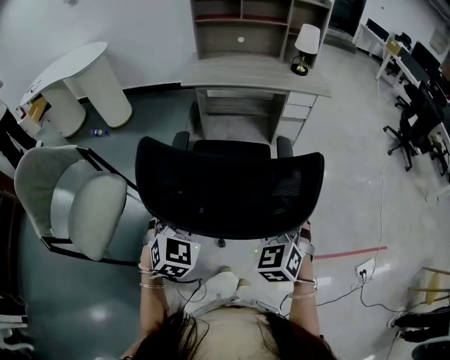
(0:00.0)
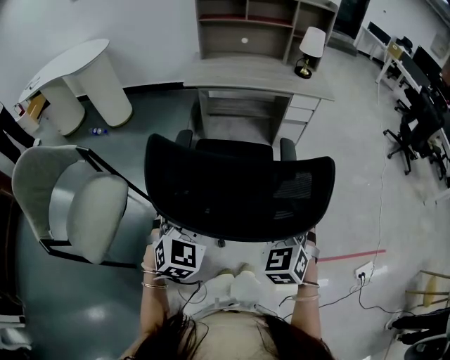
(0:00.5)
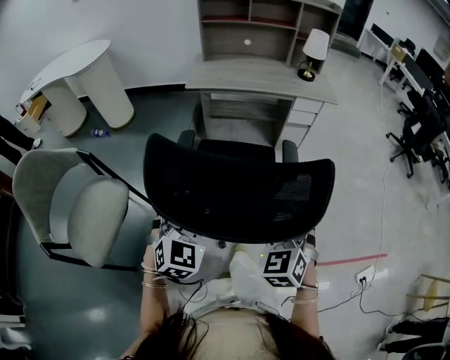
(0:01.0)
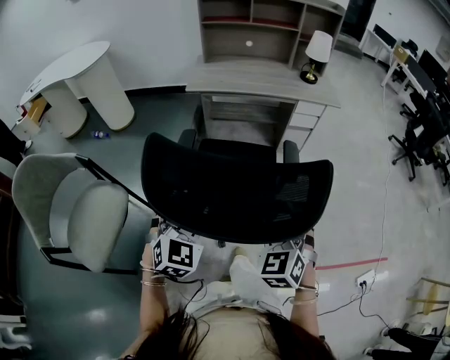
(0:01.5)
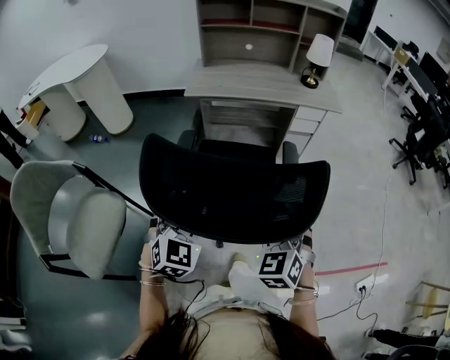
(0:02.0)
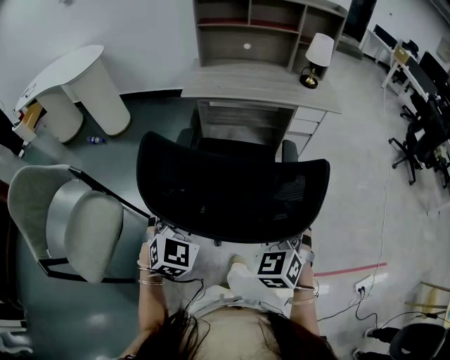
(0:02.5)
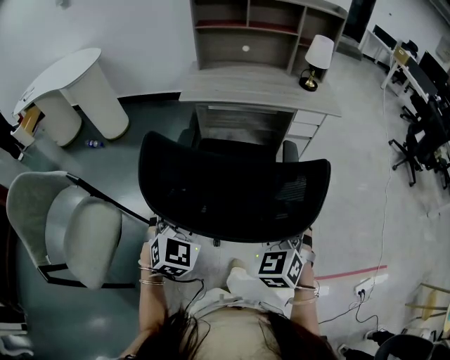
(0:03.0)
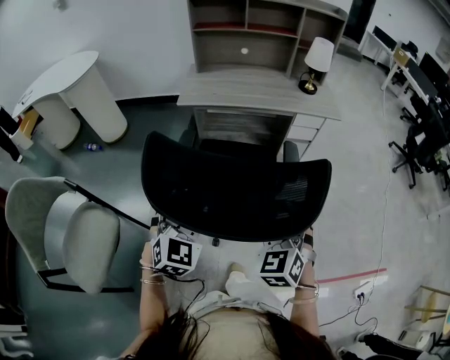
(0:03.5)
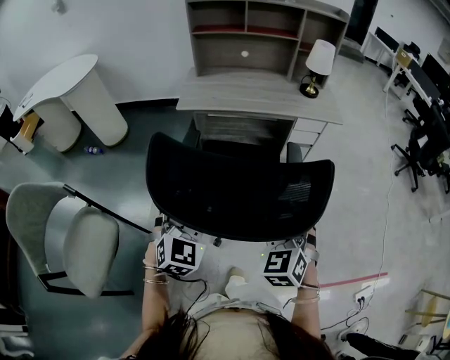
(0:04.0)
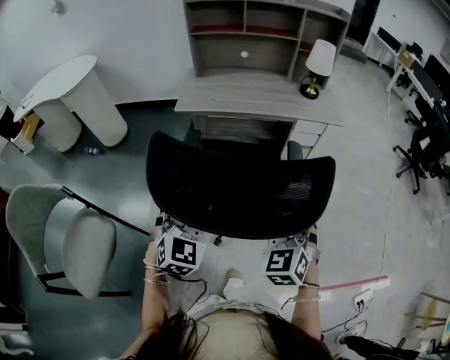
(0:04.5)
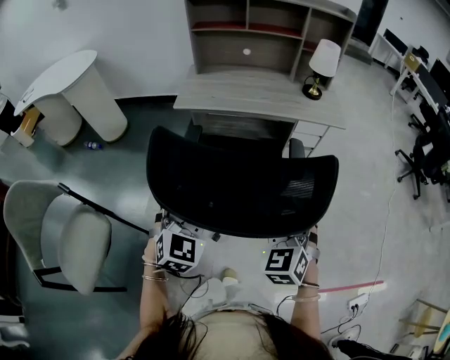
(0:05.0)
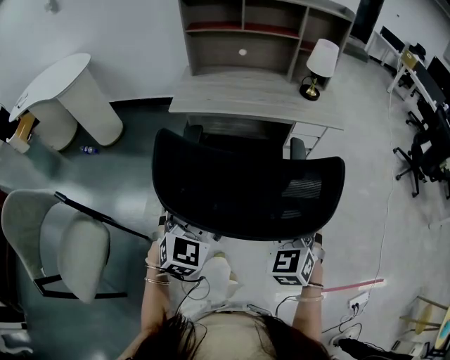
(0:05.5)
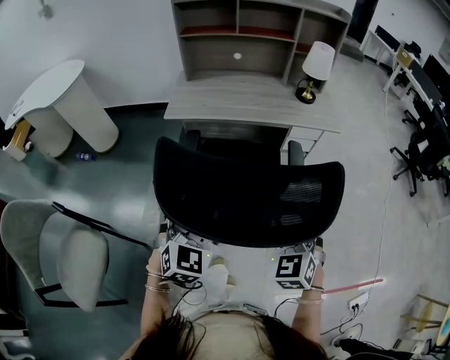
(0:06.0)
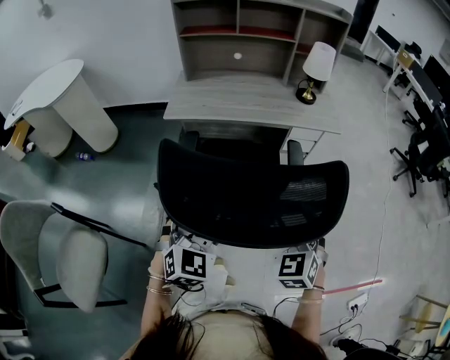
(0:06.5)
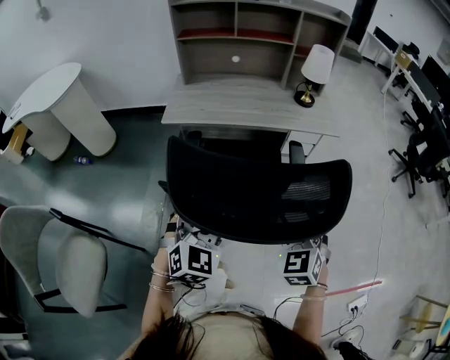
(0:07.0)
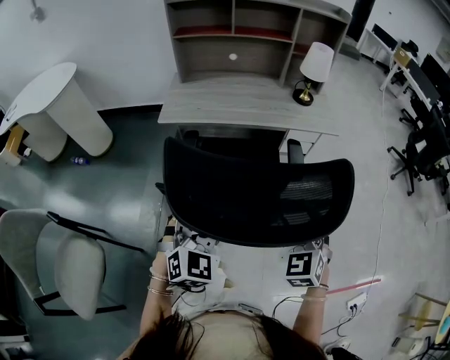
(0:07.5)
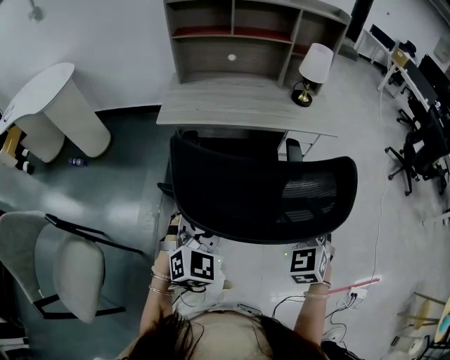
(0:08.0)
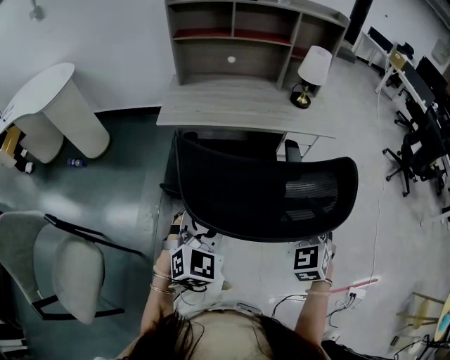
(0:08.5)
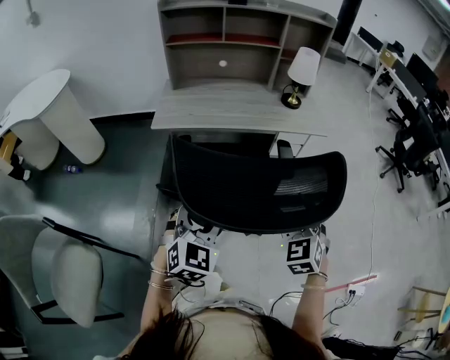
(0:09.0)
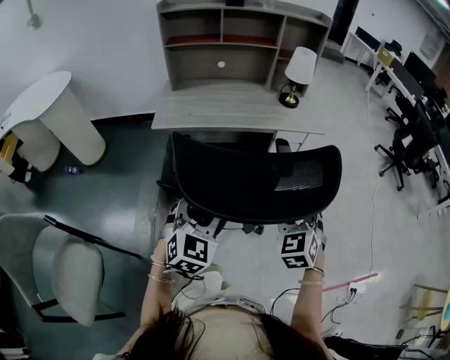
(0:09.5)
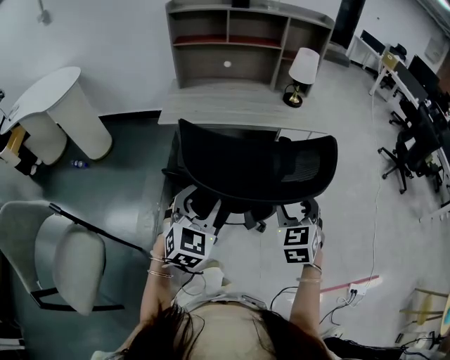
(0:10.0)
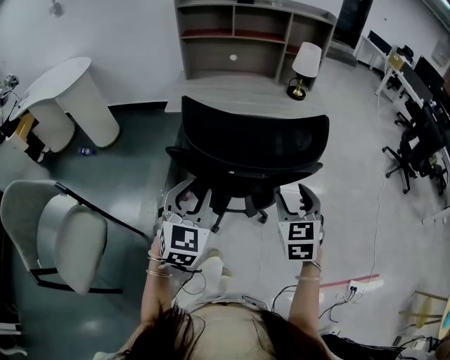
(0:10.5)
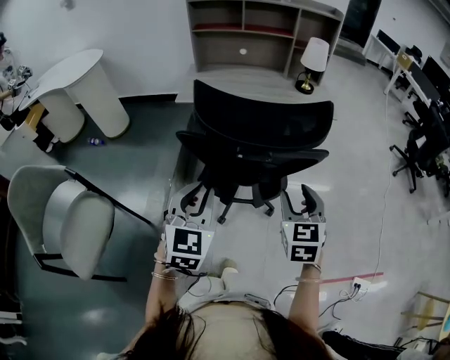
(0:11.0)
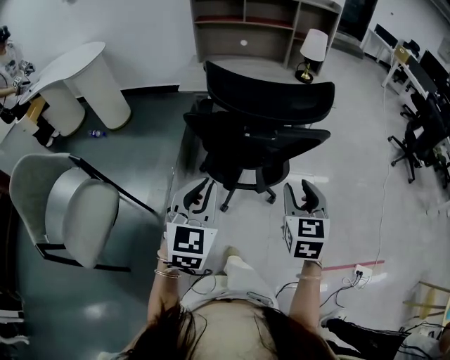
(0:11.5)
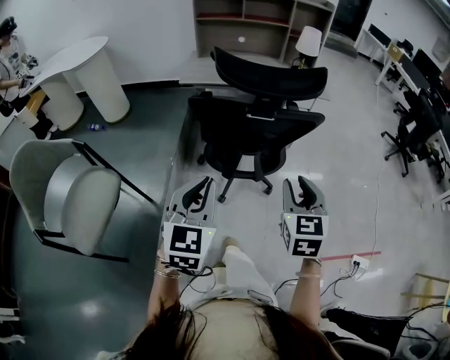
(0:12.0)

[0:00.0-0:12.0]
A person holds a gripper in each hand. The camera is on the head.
0:00.0 to 0:02.0: Both grippers travel together forward, about 10 cm.
0:02.0 to 0:04.0: The two grippers go approximately 10 cm forward.
0:04.0 to 0:06.0: The two grippers go roughly 10 cm forward.
0:06.0 to 0:08.0: The right gripper changes place by approximately 5 cm.
0:08.0 to 0:10.0: The grippers move only a little.
0:10.0 to 0:12.0: The two grippers go roughly 25 cm backward. The left gripper rotates about 20 degrees, and closes its fingers, while the right gripper closes up.

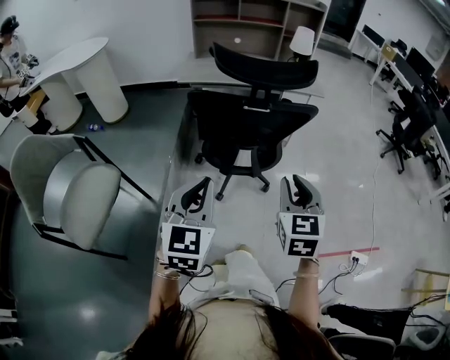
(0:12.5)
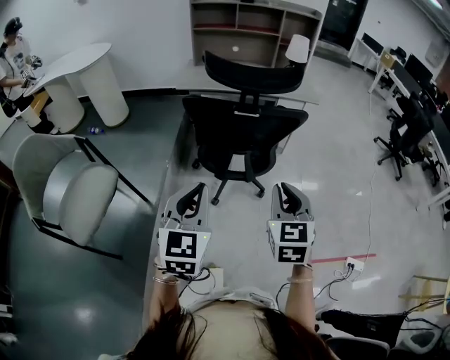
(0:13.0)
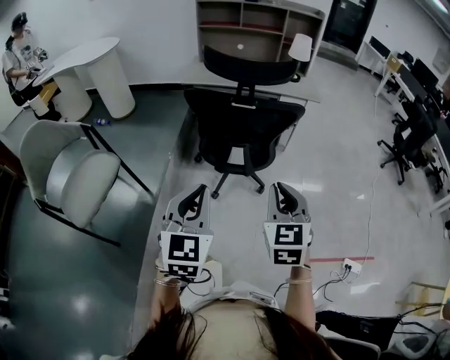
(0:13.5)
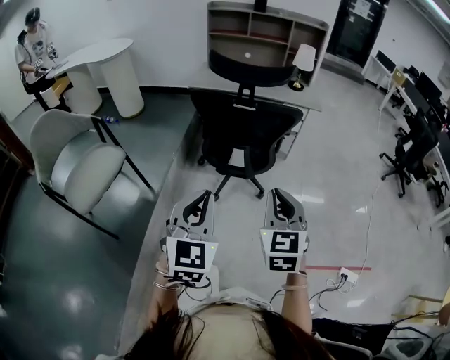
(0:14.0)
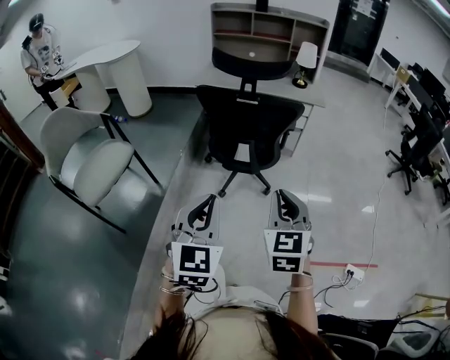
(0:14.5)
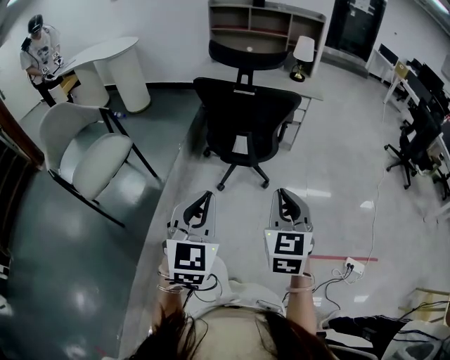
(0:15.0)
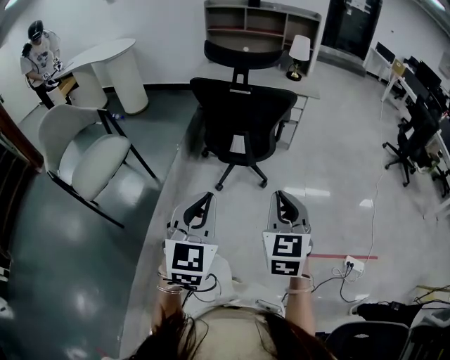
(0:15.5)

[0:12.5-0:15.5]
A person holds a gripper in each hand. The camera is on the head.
0:12.5 to 0:14.0: The right gripper goes some 10 cm backward. The left gripper shifts roughly 15 cm backward and to the right.
0:14.0 to 0:15.5: The grippers both shift backward by some 10 cm.

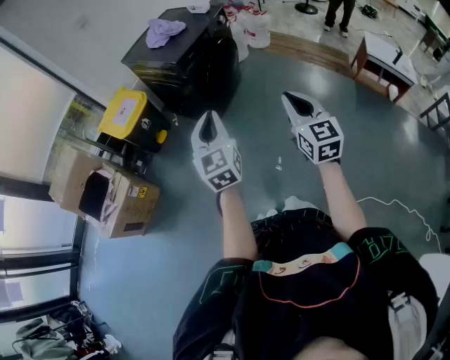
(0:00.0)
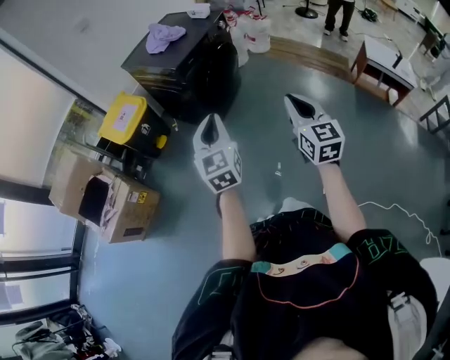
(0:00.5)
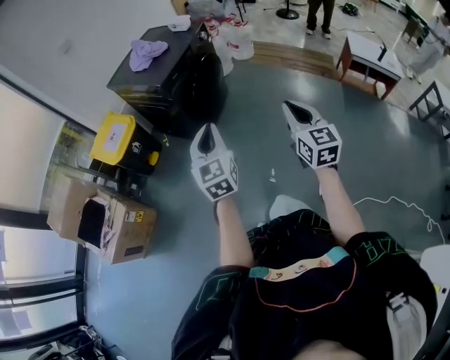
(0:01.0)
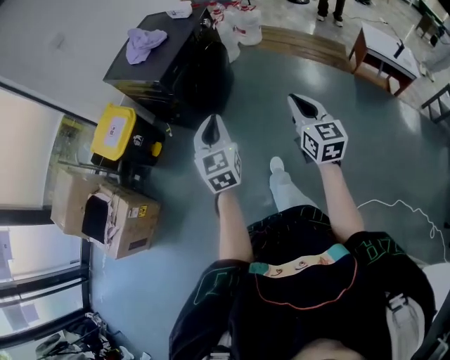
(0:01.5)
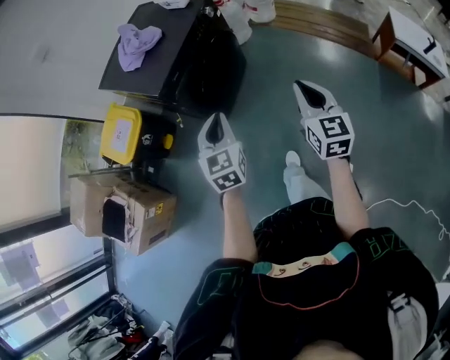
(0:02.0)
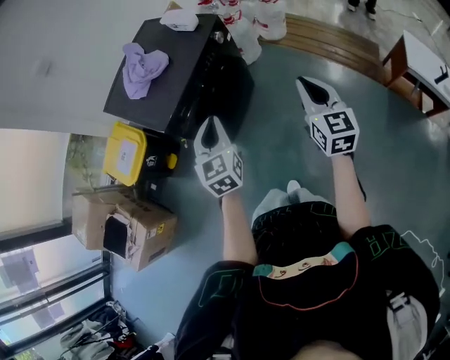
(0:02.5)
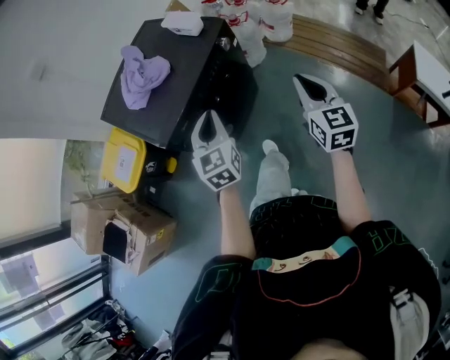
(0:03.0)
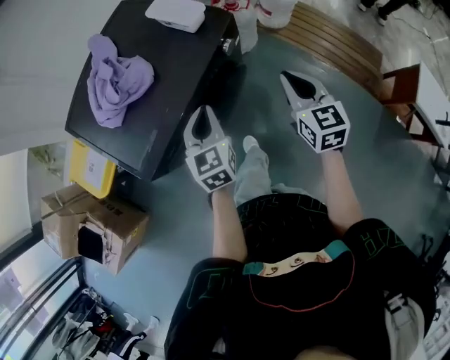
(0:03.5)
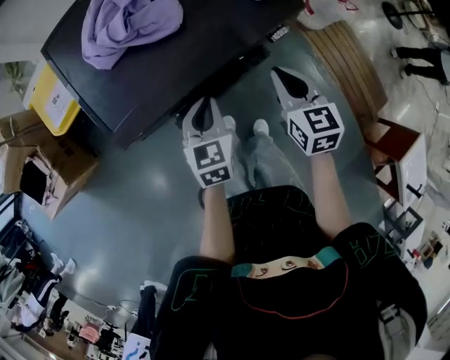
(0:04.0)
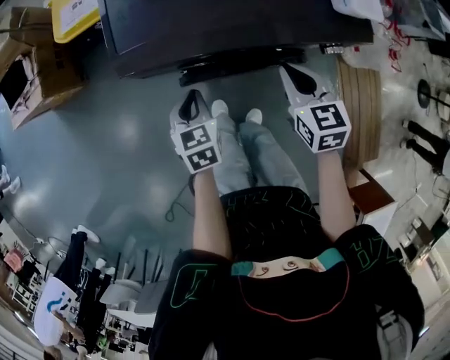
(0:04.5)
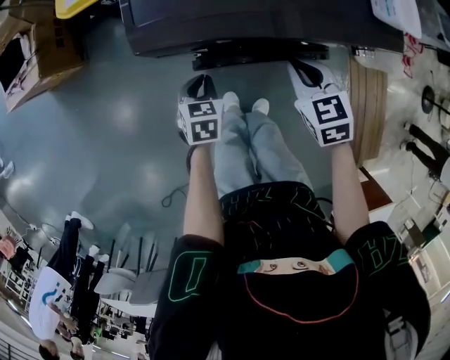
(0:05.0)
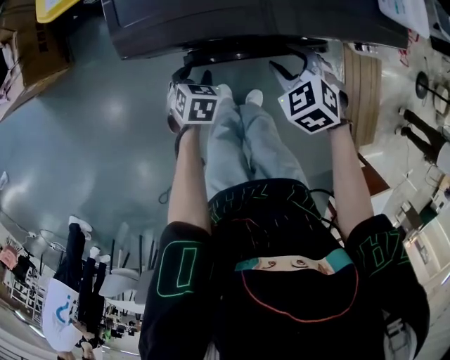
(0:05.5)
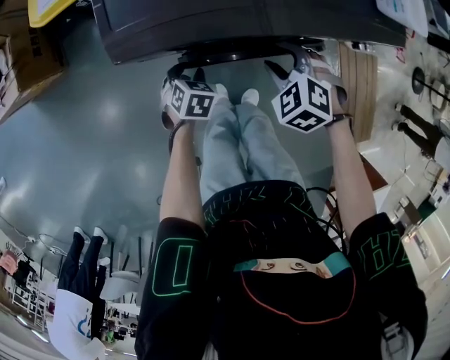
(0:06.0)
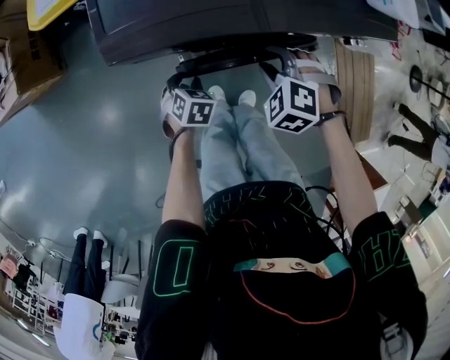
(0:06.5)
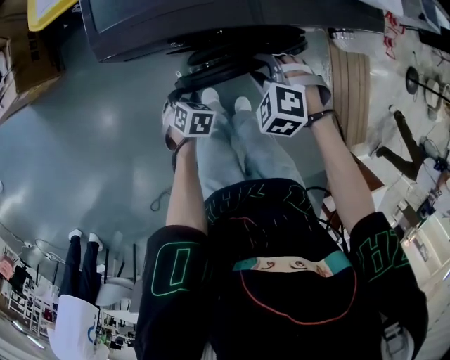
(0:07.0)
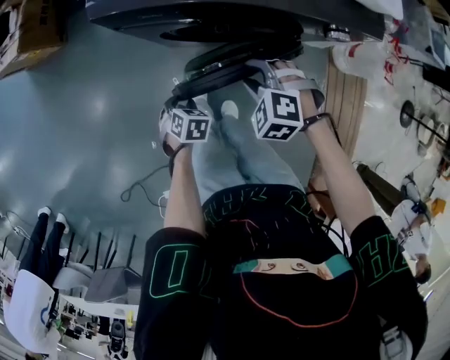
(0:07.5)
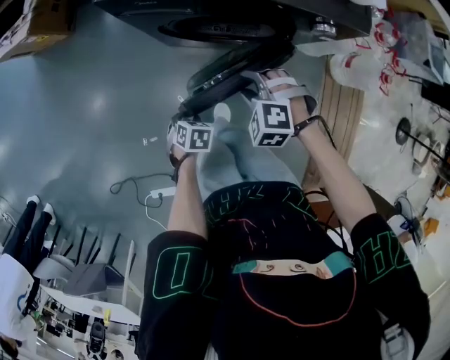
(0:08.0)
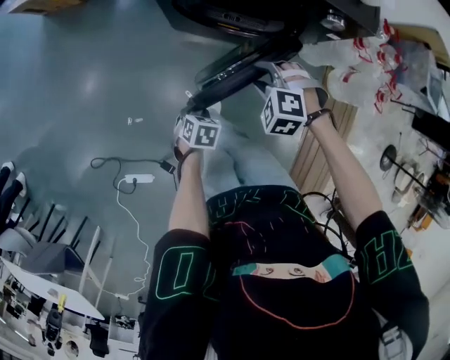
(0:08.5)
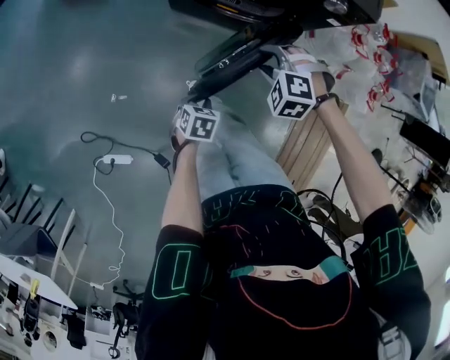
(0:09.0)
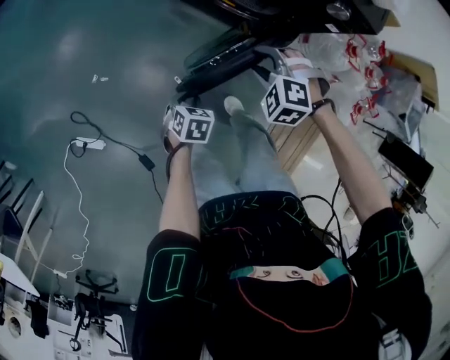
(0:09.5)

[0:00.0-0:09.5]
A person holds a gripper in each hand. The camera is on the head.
0:00.0 to 0:02.0: The right gripper travels forward and to the right by approximately 35 cm, while the left gripper travels forward by roughly 30 cm.
0:02.0 to 0:04.0: The left gripper moves approximately 40 cm, and rotates some 30 degrees; the right gripper ends up roughly 50 cm from where it was, and changes its angle by roughly 40 degrees.
0:04.0 to 0:05.5: The left gripper shifts about 25 cm downward, angles its fingers downward, by about 30 degrees, and opens. The right gripper goes roughly 15 cm downward, twists roughly 60 degrees counterclockwise, seen from behind, and opens up.
0:05.5 to 0:07.5: The left gripper travels backward by some 15 cm. Meanwhile the right gripper shifts about 10 cm backward, and turns by roughly 30 degrees.
0:07.5 to 0:09.5: The right gripper ends up roughly 20 cm from where it was, and rotates some 30 degrees, while the left gripper ends up approximately 30 cm from where it was, and swivels about 30 degrees.

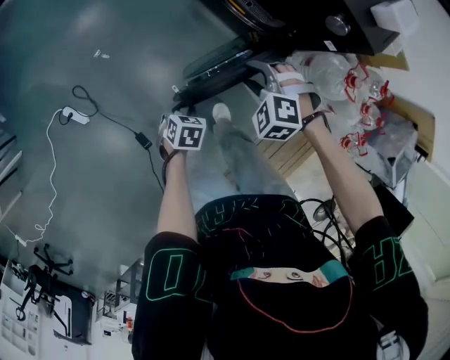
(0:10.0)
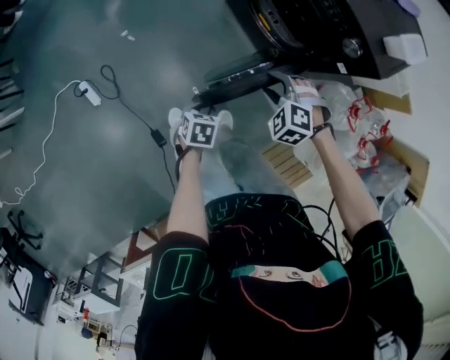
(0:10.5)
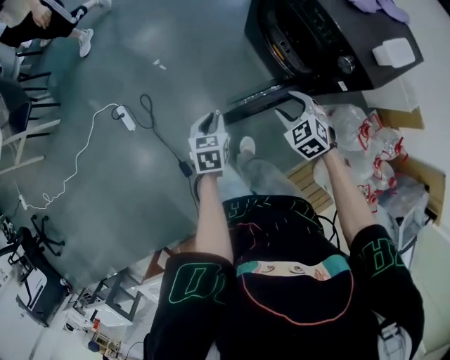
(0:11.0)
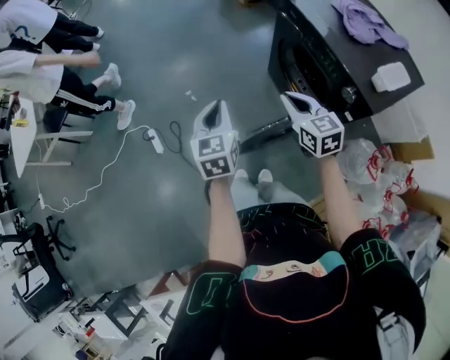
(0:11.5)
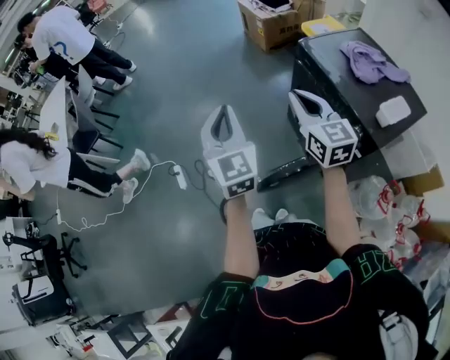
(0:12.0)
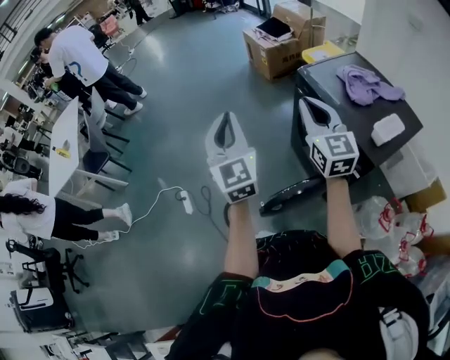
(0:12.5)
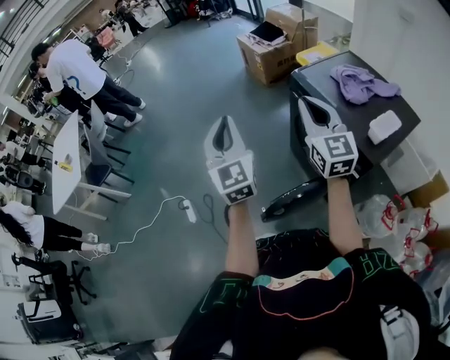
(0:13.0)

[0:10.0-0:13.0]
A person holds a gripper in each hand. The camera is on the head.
0:10.0 to 0:11.5: The left gripper heads upward, covering about 40 cm, angles its fingers upward, by approximately 50 degrees, and closes up. Meanwhile the right gripper is displaced upward by about 20 cm, angles its fingers upward, by some 40 degrees, and closes its fingers.
0:11.5 to 0:13.0: The grippers both shift upward by about 25 cm. The left gripper points its fingers about 30 degrees further upward, while the right gripper rotates about 40 degrees.
